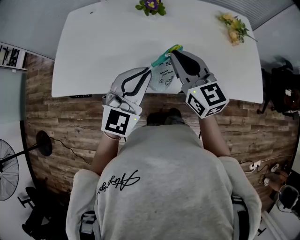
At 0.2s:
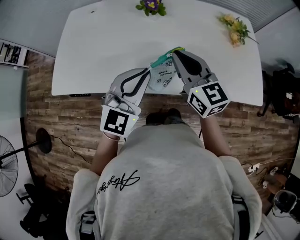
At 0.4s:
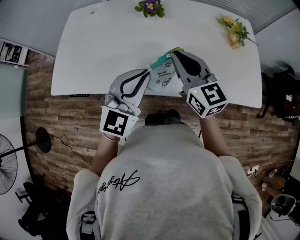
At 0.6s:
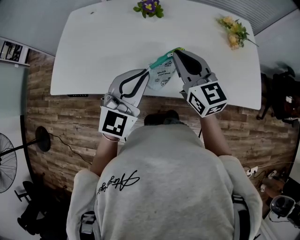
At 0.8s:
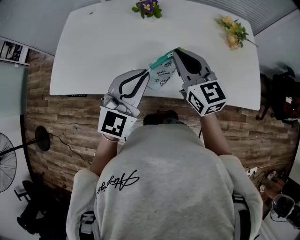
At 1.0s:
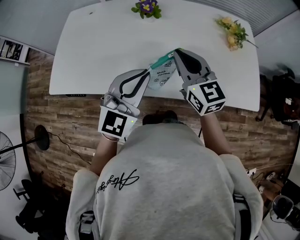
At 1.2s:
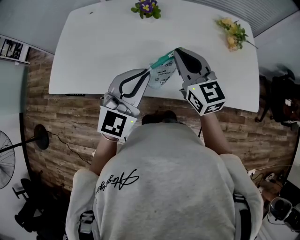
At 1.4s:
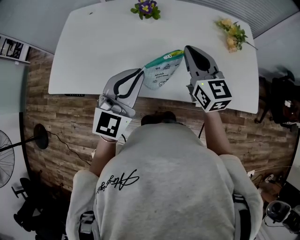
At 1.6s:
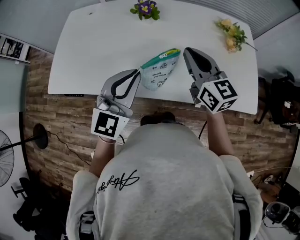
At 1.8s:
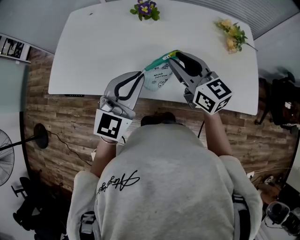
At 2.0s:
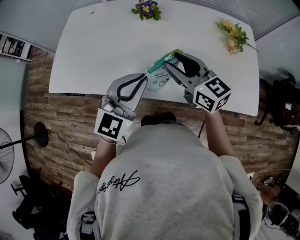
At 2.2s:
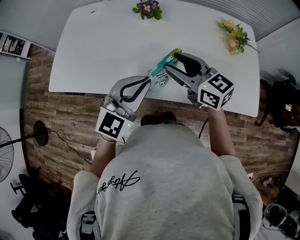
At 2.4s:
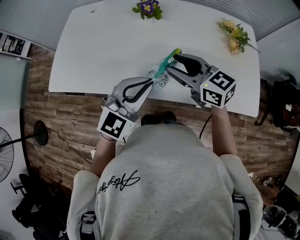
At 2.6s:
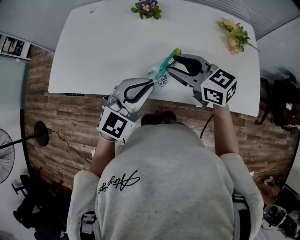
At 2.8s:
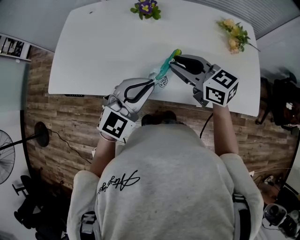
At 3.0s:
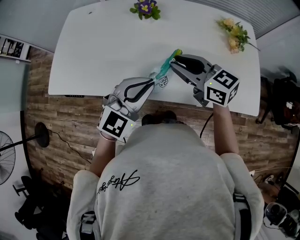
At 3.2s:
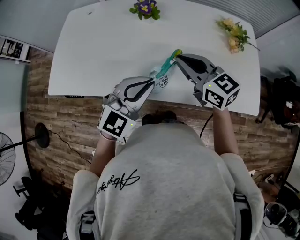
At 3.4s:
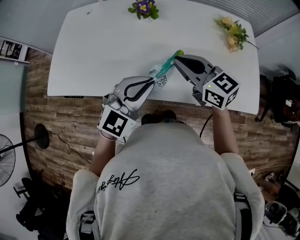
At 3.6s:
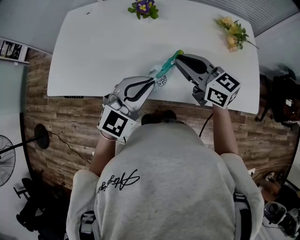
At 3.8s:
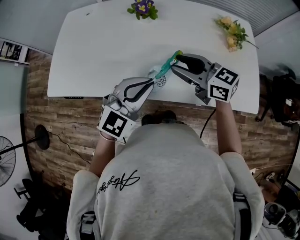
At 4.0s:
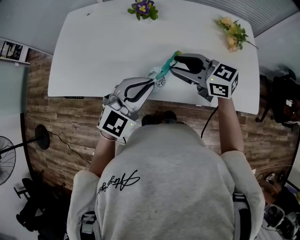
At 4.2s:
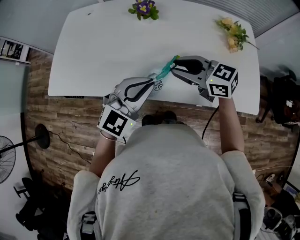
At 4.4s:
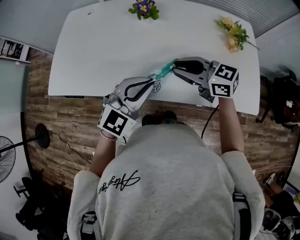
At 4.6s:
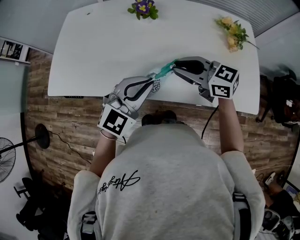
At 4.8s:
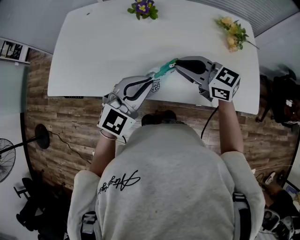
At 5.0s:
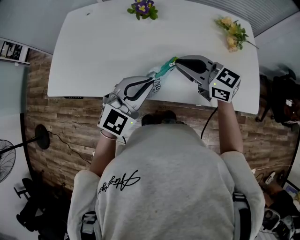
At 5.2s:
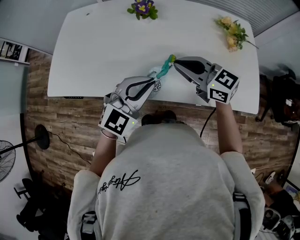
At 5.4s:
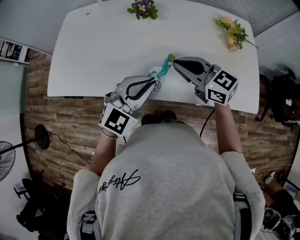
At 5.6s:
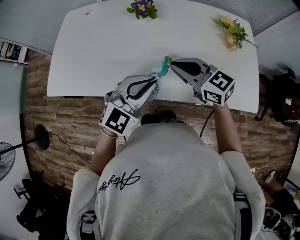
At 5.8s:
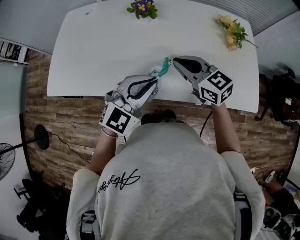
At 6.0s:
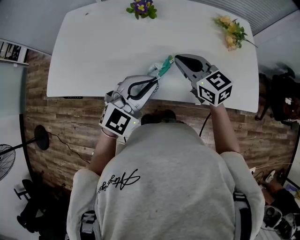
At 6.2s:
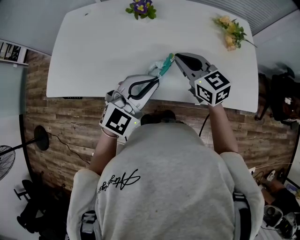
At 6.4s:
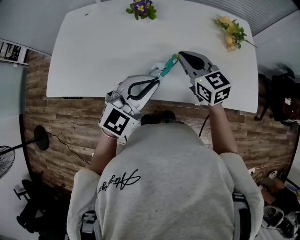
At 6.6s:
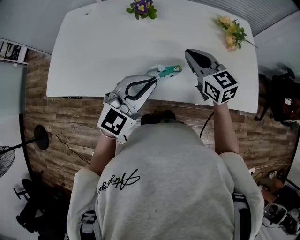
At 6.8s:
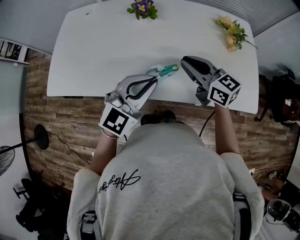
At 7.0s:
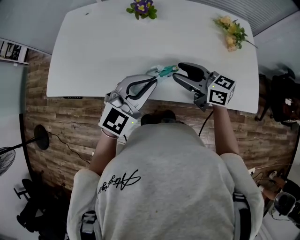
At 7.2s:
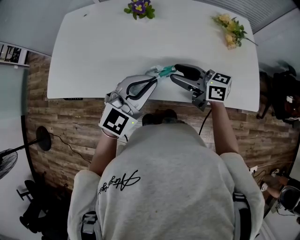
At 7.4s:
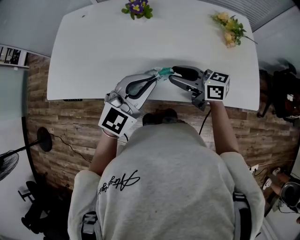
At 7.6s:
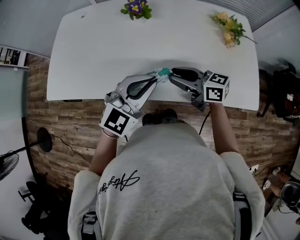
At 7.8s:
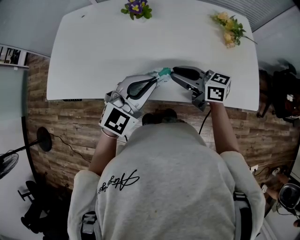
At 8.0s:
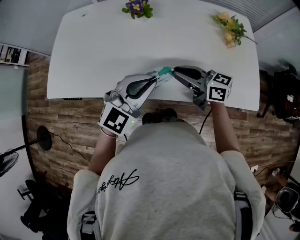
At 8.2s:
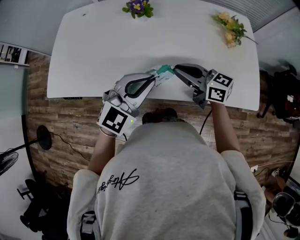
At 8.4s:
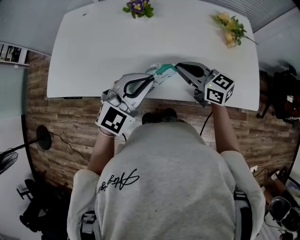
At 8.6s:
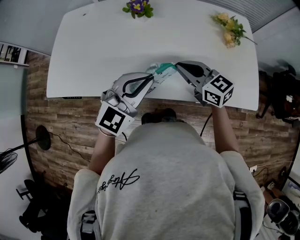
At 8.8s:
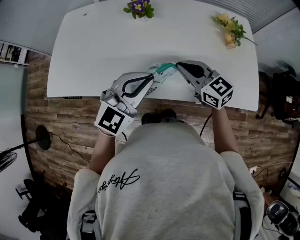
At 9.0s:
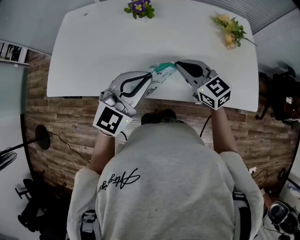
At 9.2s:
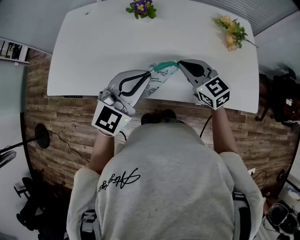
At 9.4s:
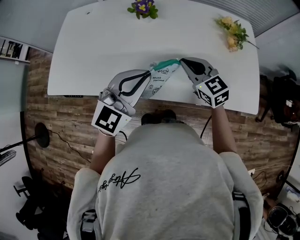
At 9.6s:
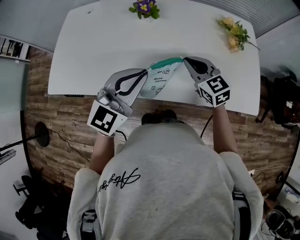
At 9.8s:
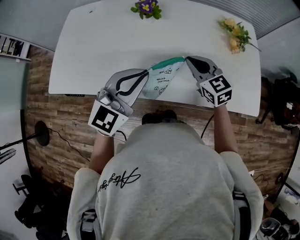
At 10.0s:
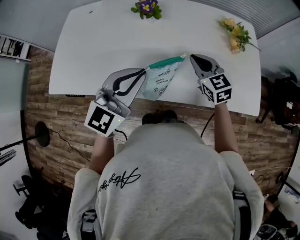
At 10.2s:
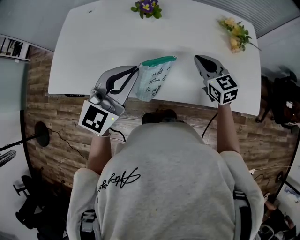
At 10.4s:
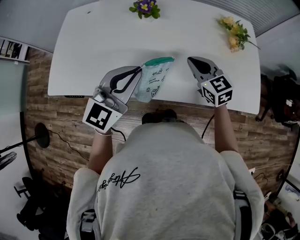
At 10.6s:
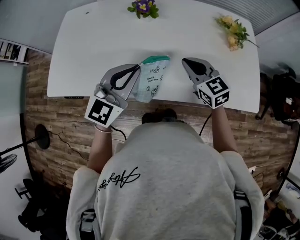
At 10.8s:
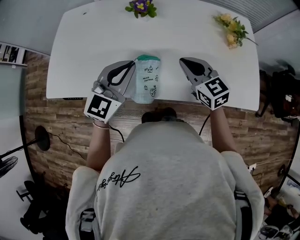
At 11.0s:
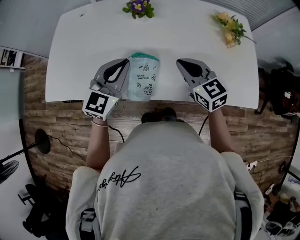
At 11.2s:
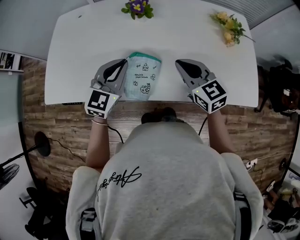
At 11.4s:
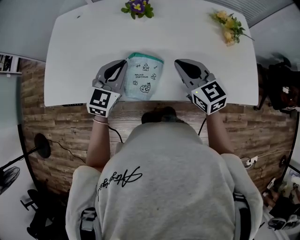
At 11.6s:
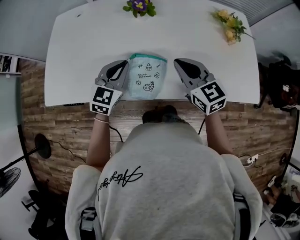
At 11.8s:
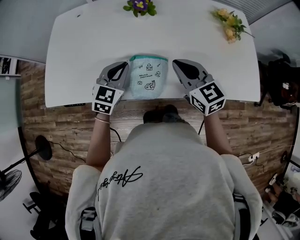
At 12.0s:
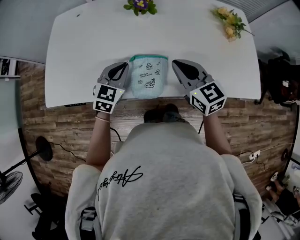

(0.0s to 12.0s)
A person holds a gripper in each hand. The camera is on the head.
0.0s - 1.6s: The right gripper moves to the right, about 10 cm.
1.6s - 3.0s: The right gripper moves some 5 cm, and rotates about 30 degrees; the left gripper shifts by roughly 5 cm.
3.0s - 4.4s: There are only small adjustments of the grippers.
4.4s - 6.0s: The right gripper changes its angle by some 20 degrees.
6.0s - 7.6s: The right gripper ends up about 5 cm from where it was, and changes its angle by about 30 degrees.
7.6s - 9.0s: The right gripper rotates approximately 30 degrees.
9.0s - 10.4s: The right gripper shifts by about 5 cm. Meanwhile the left gripper moves about 5 cm.
10.4s - 12.0s: The right gripper goes about 10 cm to the left. The left gripper moves downward, to the left and forward, roughly 20 cm, and swivels roughly 20 degrees.

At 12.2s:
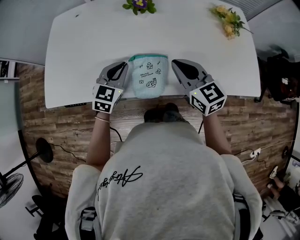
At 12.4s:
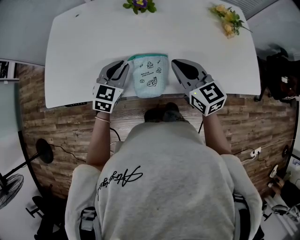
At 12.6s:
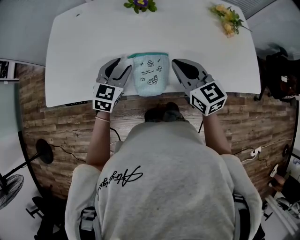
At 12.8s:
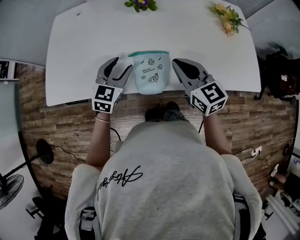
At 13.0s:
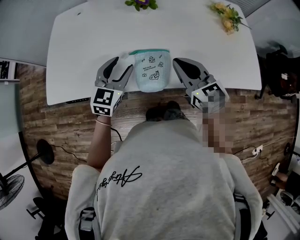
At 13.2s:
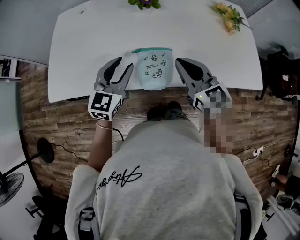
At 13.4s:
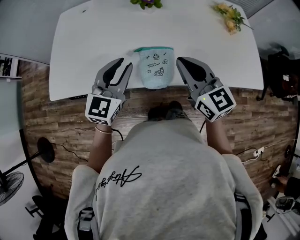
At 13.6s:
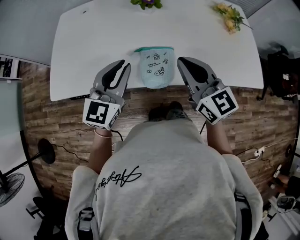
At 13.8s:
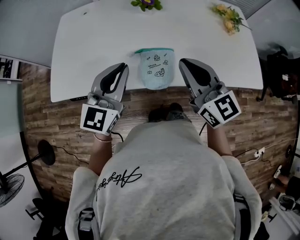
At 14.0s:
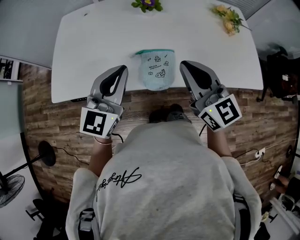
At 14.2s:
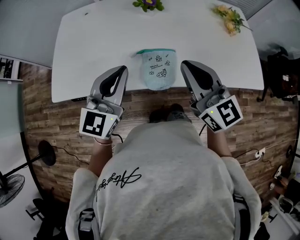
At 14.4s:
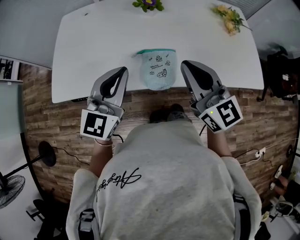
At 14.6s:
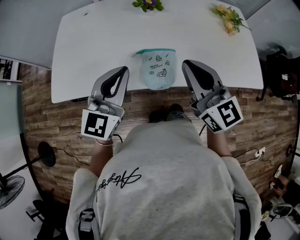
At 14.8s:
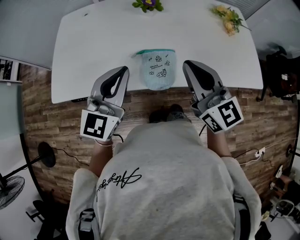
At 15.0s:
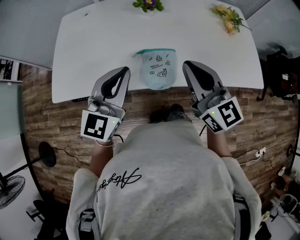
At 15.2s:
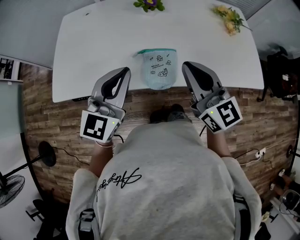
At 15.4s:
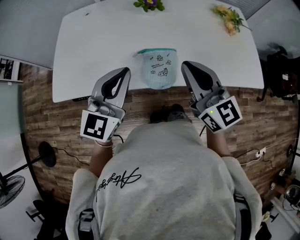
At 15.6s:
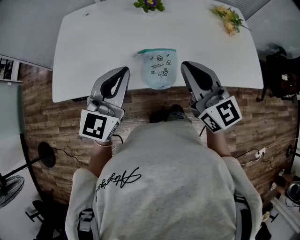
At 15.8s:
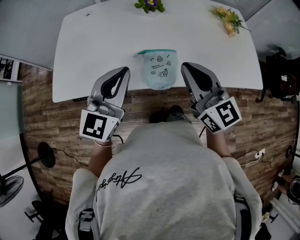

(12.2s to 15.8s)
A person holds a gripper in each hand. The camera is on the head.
12.2s - 14.0s: Both grippers travel together upward and backward, about 15 cm. The left gripper rotates about 20 degrees, and opens, then closes once more.
14.0s - 15.8s: The grippers stay close to where they were, moving slightly.

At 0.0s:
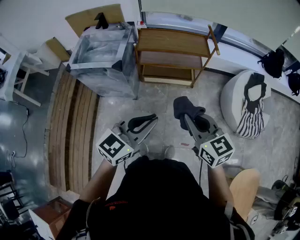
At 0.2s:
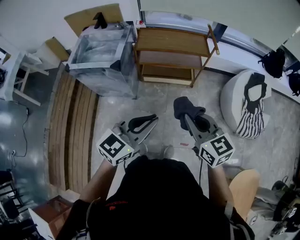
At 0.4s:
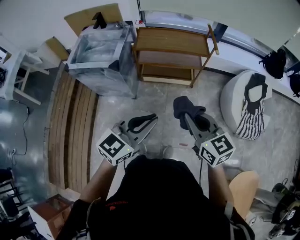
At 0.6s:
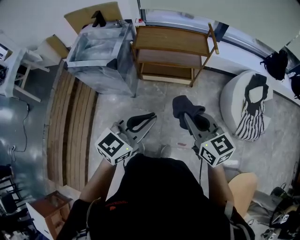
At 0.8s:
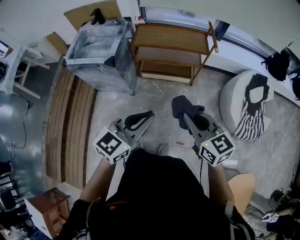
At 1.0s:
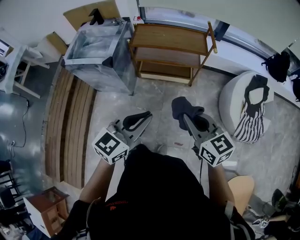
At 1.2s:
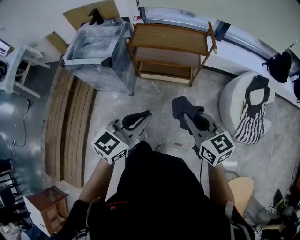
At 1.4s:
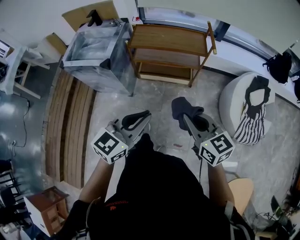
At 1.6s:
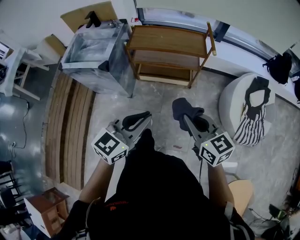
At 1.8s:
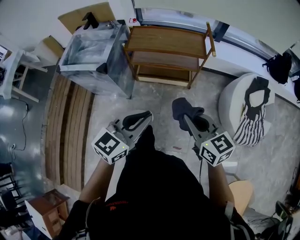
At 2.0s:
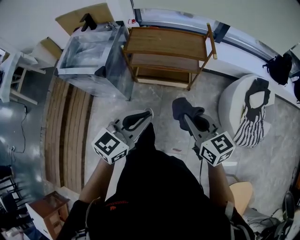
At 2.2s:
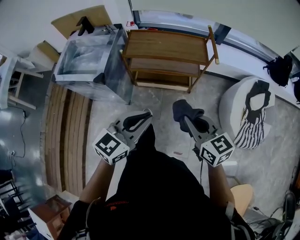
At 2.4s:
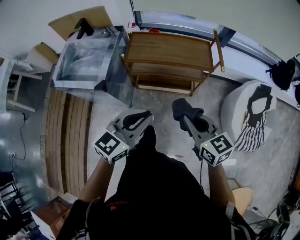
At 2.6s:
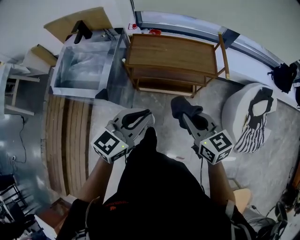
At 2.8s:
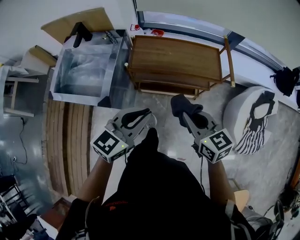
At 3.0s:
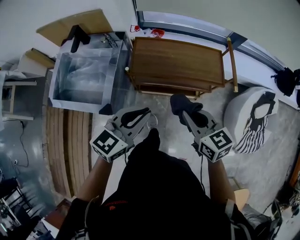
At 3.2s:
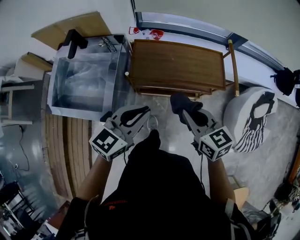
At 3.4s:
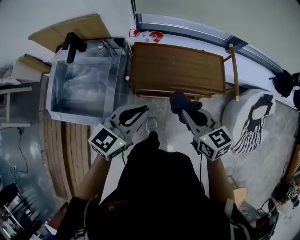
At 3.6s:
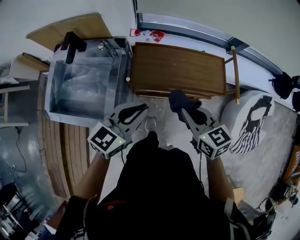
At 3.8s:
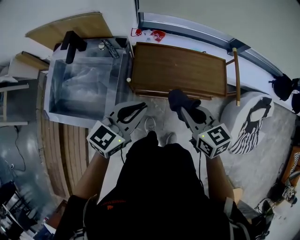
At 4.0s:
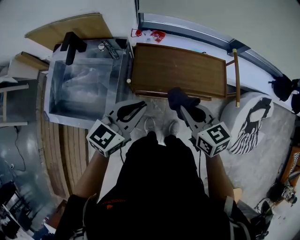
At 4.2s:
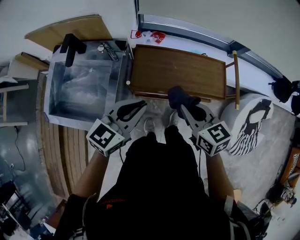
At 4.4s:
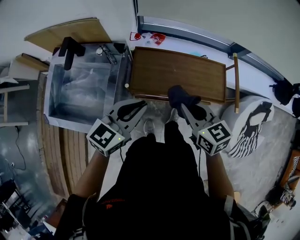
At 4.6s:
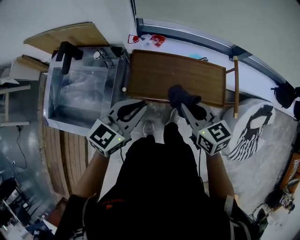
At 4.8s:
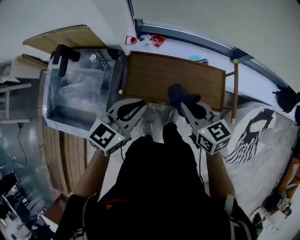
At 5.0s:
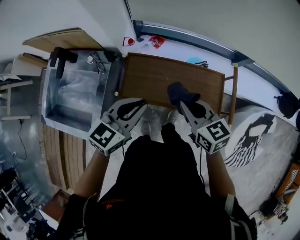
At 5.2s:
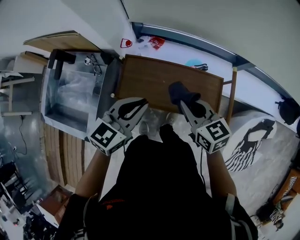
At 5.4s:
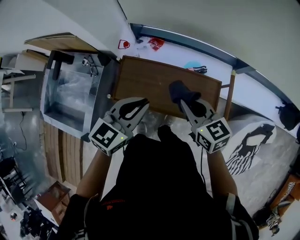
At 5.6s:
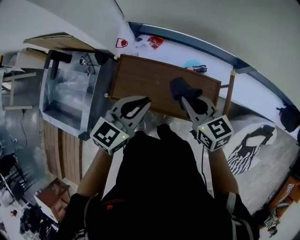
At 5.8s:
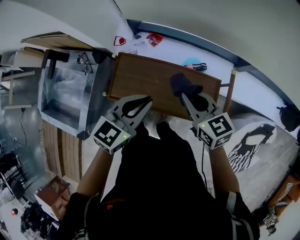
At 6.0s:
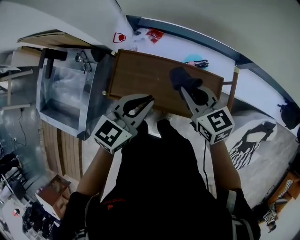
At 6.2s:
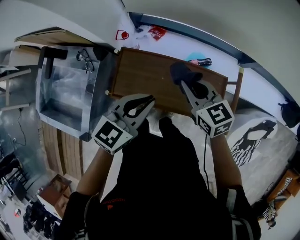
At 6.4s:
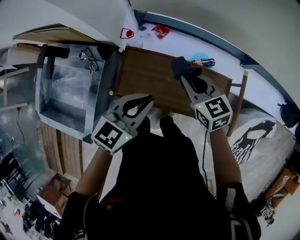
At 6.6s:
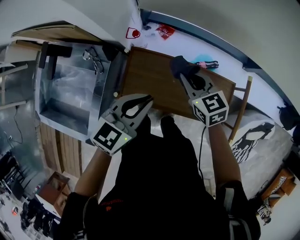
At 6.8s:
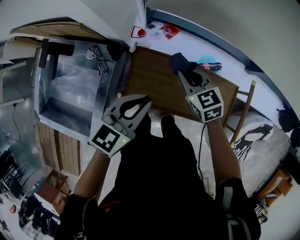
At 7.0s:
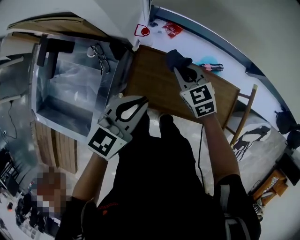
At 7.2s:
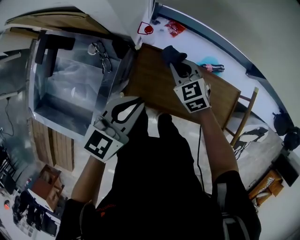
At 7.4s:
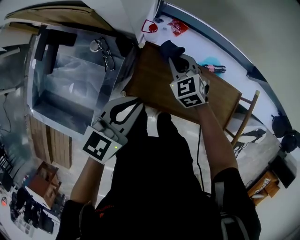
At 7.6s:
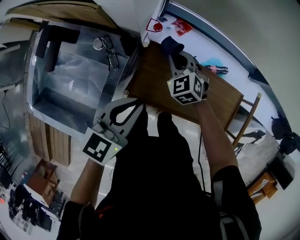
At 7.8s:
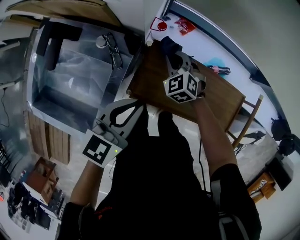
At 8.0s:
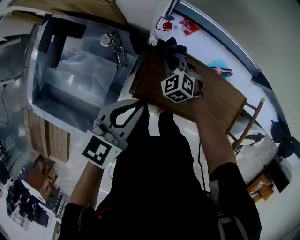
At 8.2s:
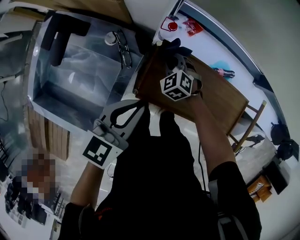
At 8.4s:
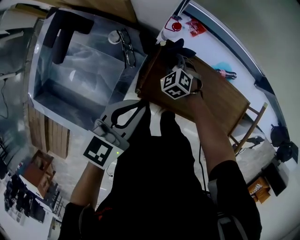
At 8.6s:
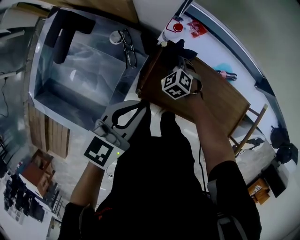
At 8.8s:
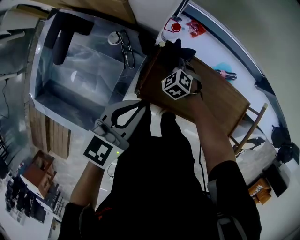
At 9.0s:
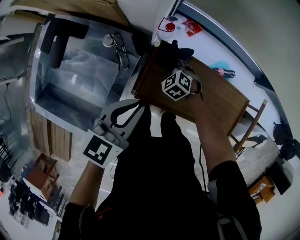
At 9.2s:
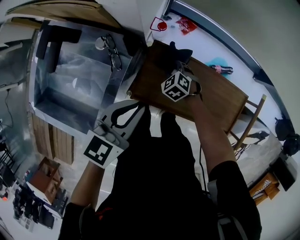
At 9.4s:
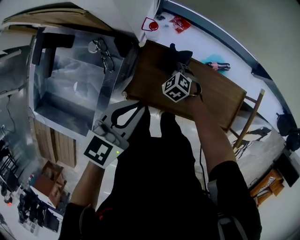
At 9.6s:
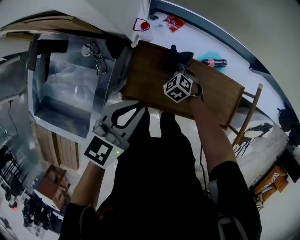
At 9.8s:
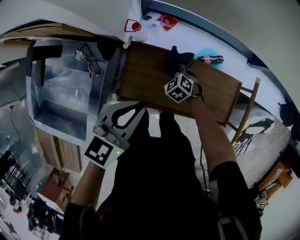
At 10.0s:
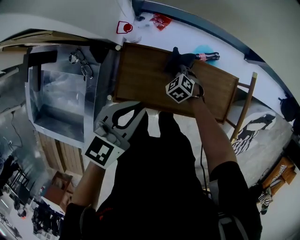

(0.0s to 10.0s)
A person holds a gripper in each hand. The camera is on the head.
0.0s - 1.4s: Both grippers travel together to the right and forward, approximately 10 cm.
1.4s - 2.8s: Both grippers move forward, approximately 30 cm.
2.8s - 4.2s: Both grippers move forward and to the left, about 20 cm.
4.2s - 5.8s: The left gripper moves to the right and forward, roughly 25 cm. Meanwhile the right gripper heads forward and to the right, covering about 25 cm.
5.8s - 7.2s: The left gripper is displaced to the left by approximately 20 cm. Meanwhile the right gripper is displaced to the left, downward and forward by roughly 30 cm, and swivels some 30 degrees.
7.2s - 8.6s: The right gripper moves downward and to the left, roughly 20 cm, and rotates approximately 20 degrees; the left gripper heads to the left, covering approximately 10 cm.
8.6s - 10.0s: The grippers both shift to the right by about 20 cm.
